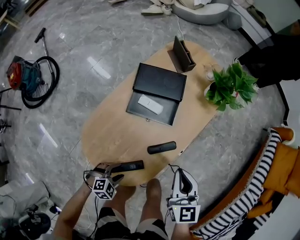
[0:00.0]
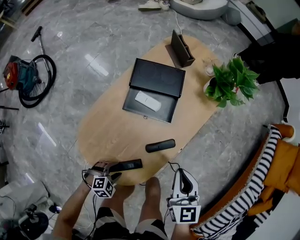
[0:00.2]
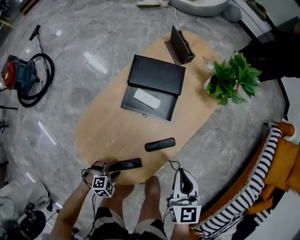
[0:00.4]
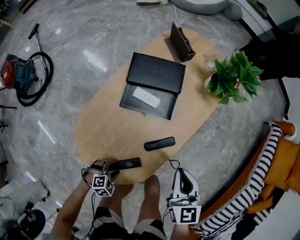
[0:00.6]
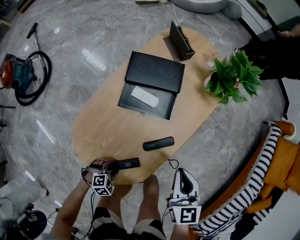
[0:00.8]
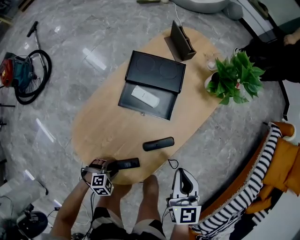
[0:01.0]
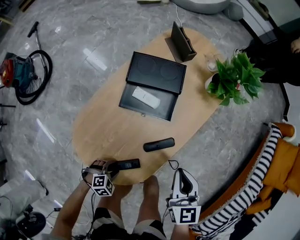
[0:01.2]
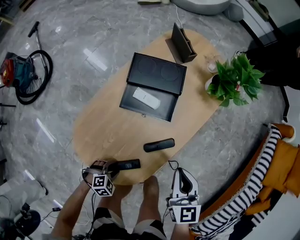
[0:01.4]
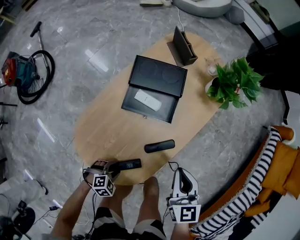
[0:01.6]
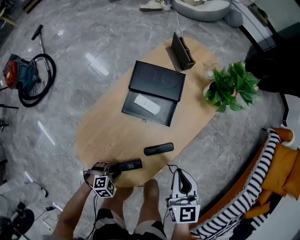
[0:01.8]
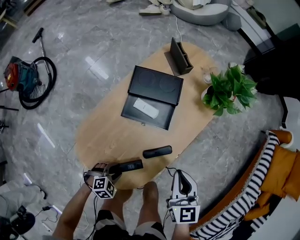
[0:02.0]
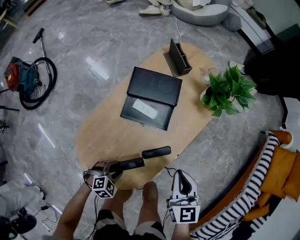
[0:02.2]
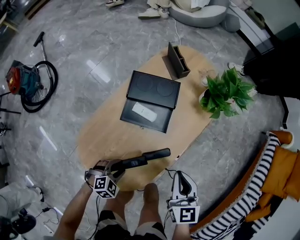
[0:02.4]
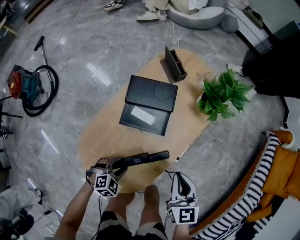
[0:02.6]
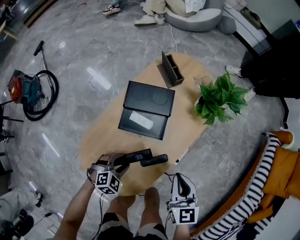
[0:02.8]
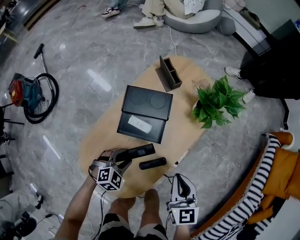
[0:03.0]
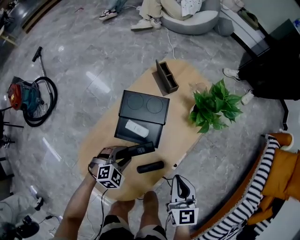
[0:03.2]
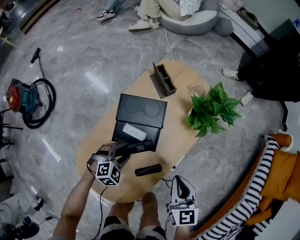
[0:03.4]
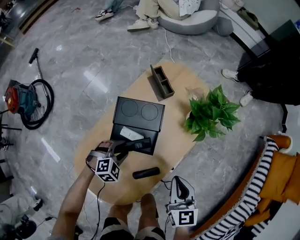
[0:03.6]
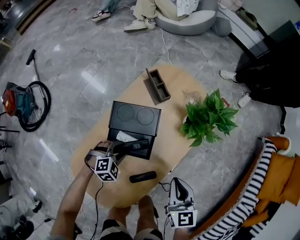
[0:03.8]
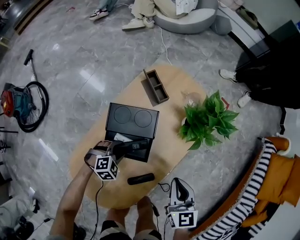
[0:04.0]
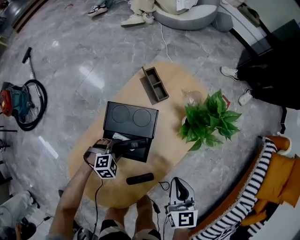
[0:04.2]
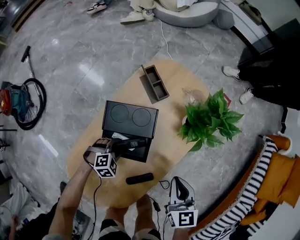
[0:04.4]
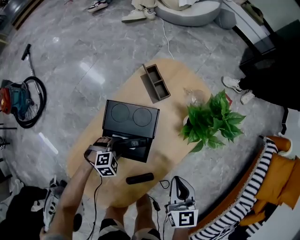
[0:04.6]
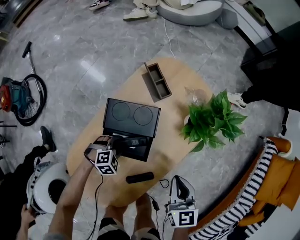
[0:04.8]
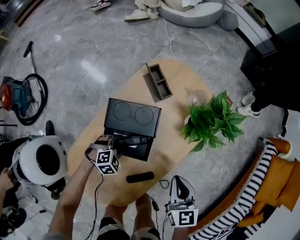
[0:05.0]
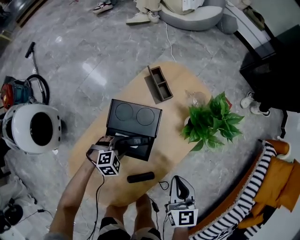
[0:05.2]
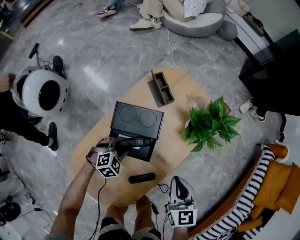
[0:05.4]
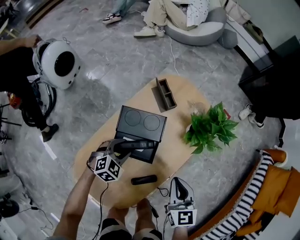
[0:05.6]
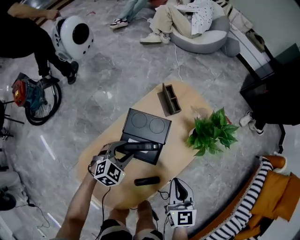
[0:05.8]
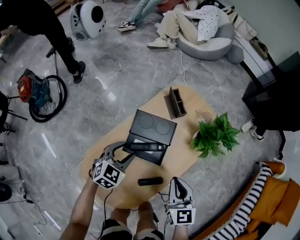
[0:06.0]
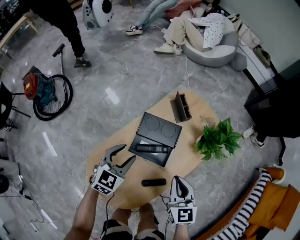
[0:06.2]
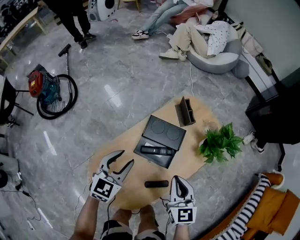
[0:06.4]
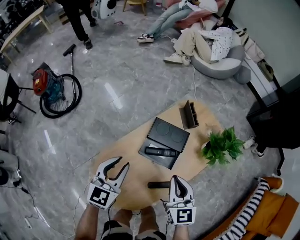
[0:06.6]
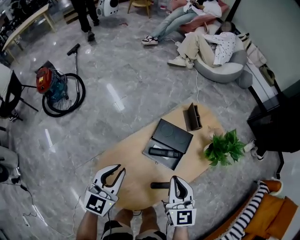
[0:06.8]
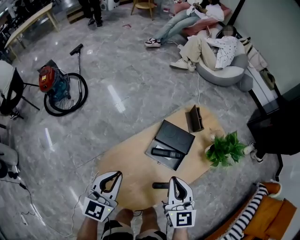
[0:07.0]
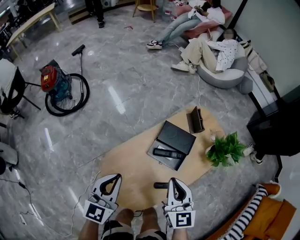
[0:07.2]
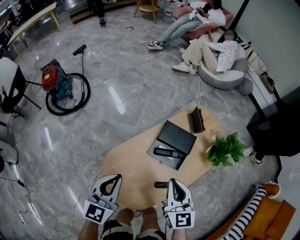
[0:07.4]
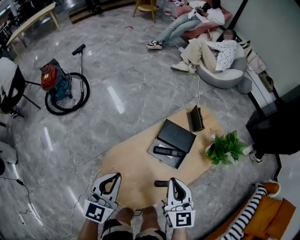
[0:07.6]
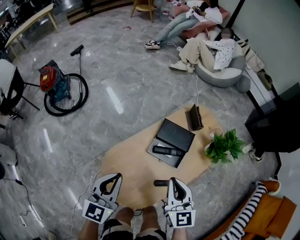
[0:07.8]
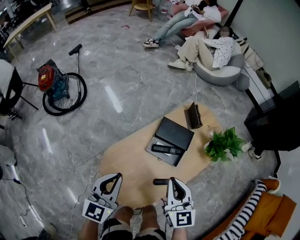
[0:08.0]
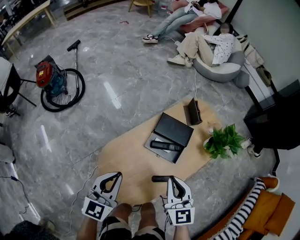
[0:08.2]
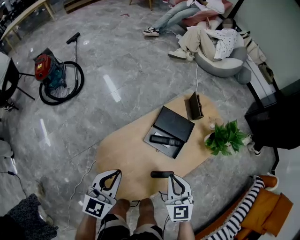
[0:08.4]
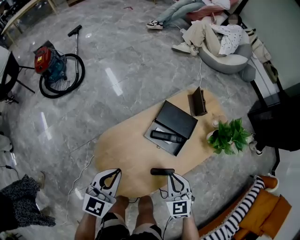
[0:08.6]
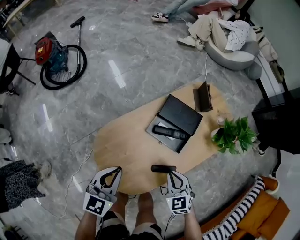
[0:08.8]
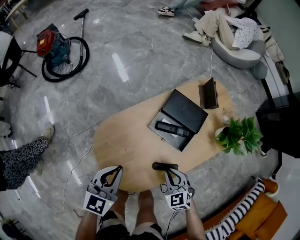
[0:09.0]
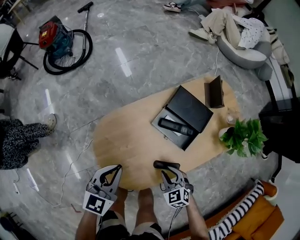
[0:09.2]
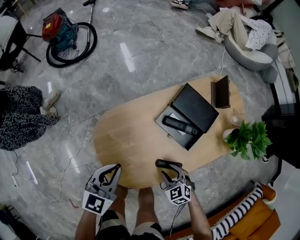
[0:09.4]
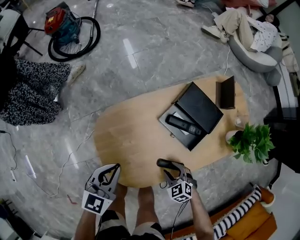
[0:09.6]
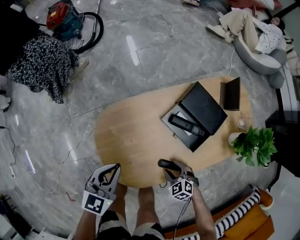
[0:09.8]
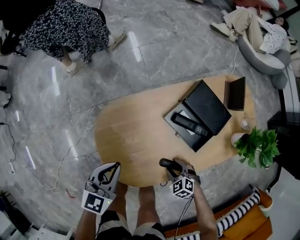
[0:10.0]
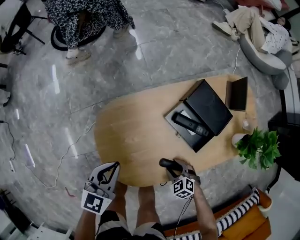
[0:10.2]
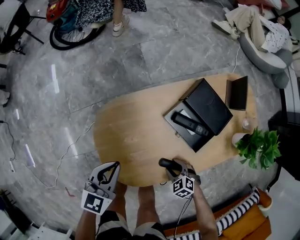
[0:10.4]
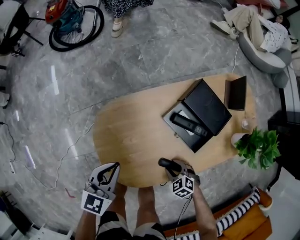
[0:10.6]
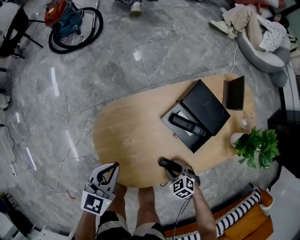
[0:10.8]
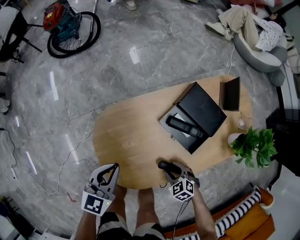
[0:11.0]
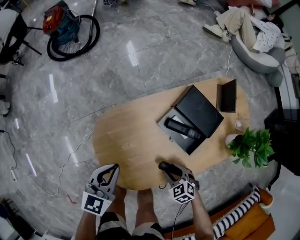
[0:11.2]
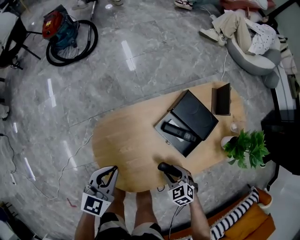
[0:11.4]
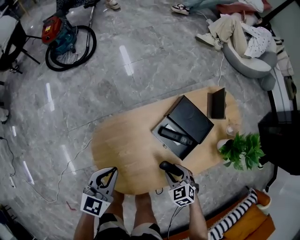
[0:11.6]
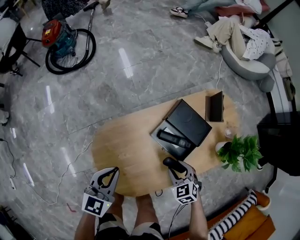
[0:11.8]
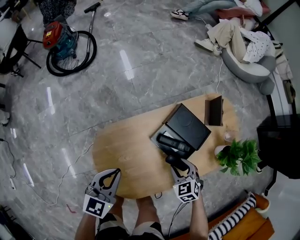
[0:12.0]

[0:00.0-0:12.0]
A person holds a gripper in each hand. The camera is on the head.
0:00.0 to 0:01.6: The grippers move only a little.
0:01.6 to 0:03.0: The left gripper is displaced forward and upward by roughly 25 cm. The right gripper moves forward, about 5 cm.
0:03.0 to 0:04.4: The left gripper is displaced forward and downward by roughly 15 cm, while the right gripper goes roughly 10 cm forward.
0:04.4 to 0:06.0: The left gripper goes approximately 20 cm upward, and changes its angle by about 40 degrees; the right gripper heads to the left and upward, covering about 10 cm.
0:06.0 to 0:07.6: The left gripper moves upward, backward and to the left, roughly 30 cm, rotates roughly 40 degrees, and closes up, while the right gripper goes roughly 20 cm to the left and upward.
0:07.6 to 0:09.0: The right gripper heads downward, covering about 25 cm, and swivels some 40 degrees. The left gripper moves downward, some 15 cm.
0:09.0 to 0:10.4: The left gripper moves downward, approximately 10 cm, while the right gripper moves downward, some 15 cm, changes its angle by roughly 30 degrees, and opens.
0:10.4 to 0:12.0: The left gripper heads upward and forward, covering roughly 10 cm. Meanwhile the right gripper travels upward, forward and to the right by about 20 cm, and swivels roughly 20 degrees.

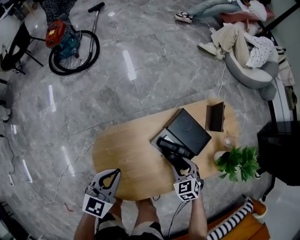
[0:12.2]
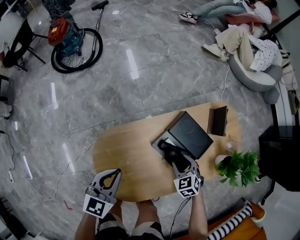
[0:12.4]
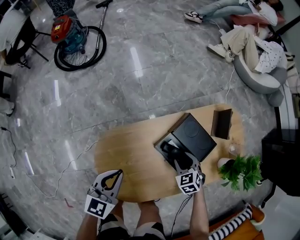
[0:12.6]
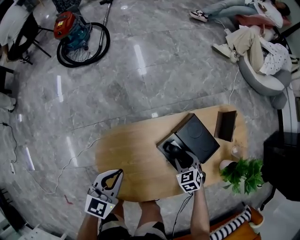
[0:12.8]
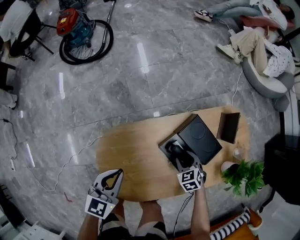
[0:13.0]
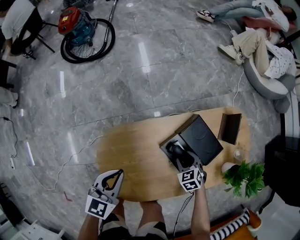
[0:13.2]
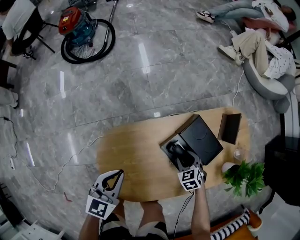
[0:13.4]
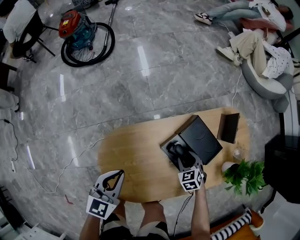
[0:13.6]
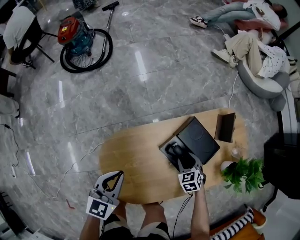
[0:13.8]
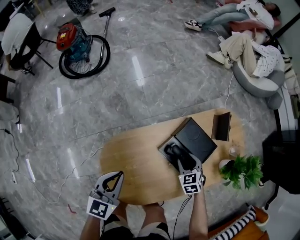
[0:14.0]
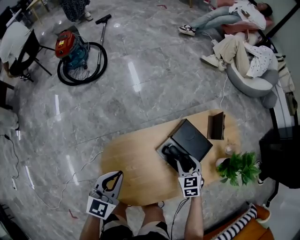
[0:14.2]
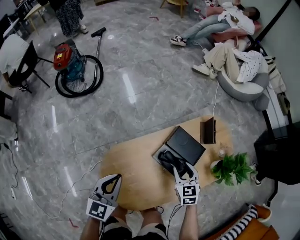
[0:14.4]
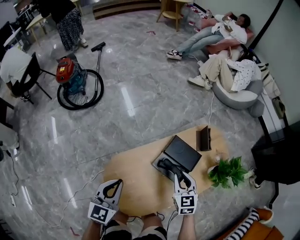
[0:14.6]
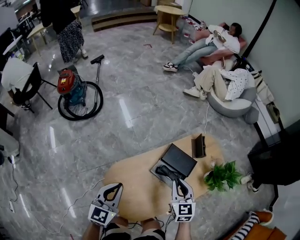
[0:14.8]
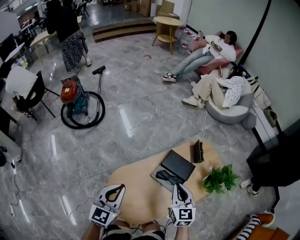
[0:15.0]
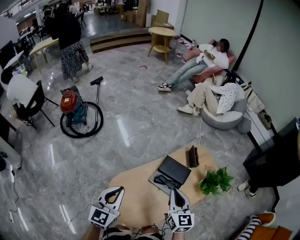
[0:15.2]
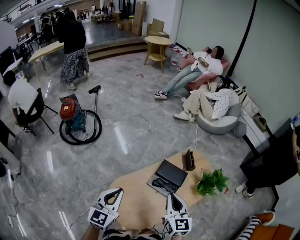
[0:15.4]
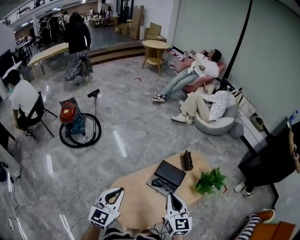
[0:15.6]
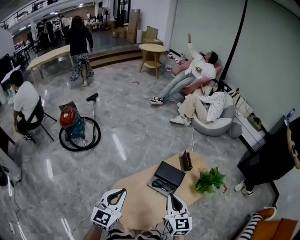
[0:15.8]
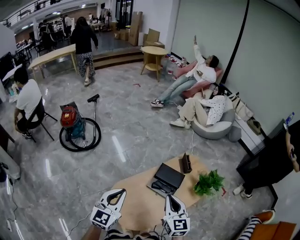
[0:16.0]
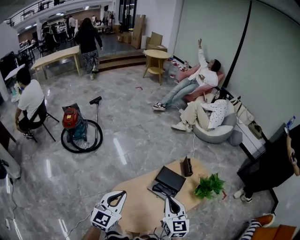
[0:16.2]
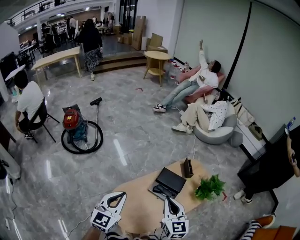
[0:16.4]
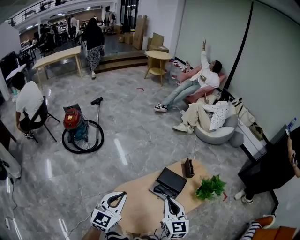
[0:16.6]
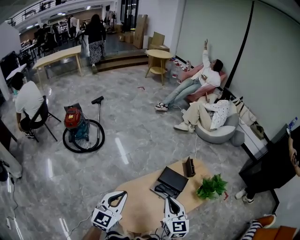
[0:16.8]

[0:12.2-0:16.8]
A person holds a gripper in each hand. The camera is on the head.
0:12.2 to 0:13.8: The right gripper goes approximately 10 cm downward and forward.
0:13.8 to 0:15.2: The left gripper shifts about 25 cm upward, and turns by some 20 degrees, while the right gripper is displaced upward by some 40 cm, angles its fingers upward, by some 40 degrees, and closes its fingers.
0:15.2 to 0:16.8: The right gripper heads upward and backward, covering some 10 cm, while the left gripper shifts some 10 cm upward.

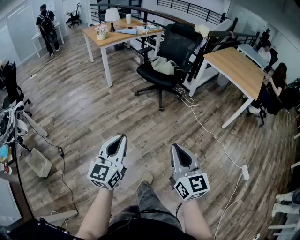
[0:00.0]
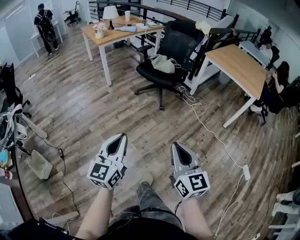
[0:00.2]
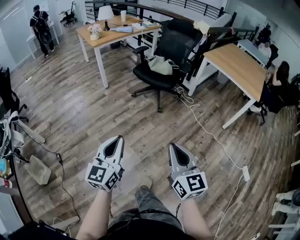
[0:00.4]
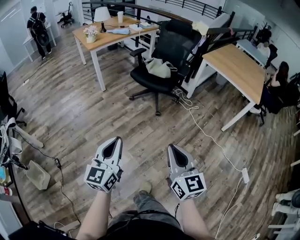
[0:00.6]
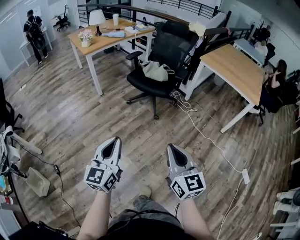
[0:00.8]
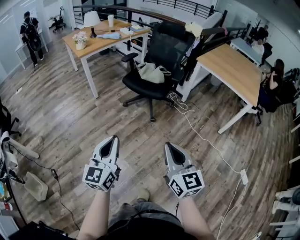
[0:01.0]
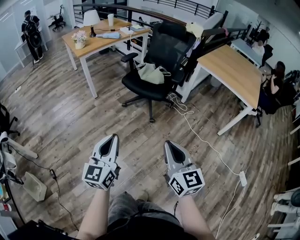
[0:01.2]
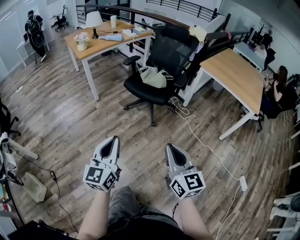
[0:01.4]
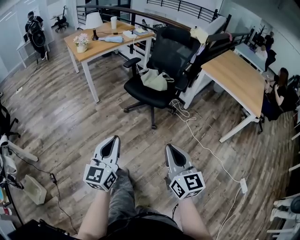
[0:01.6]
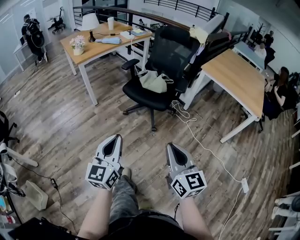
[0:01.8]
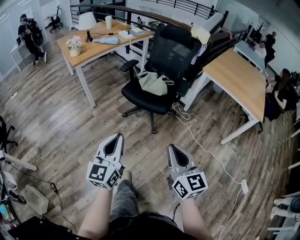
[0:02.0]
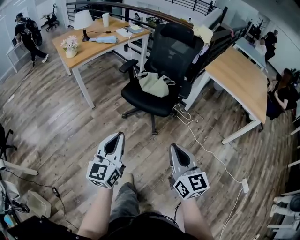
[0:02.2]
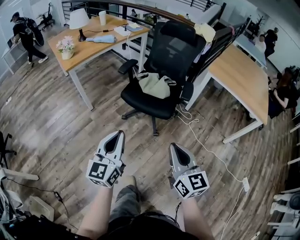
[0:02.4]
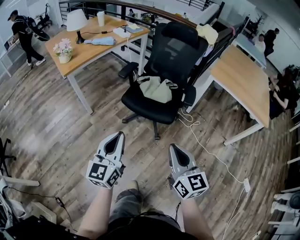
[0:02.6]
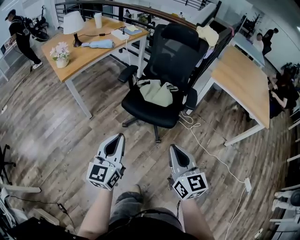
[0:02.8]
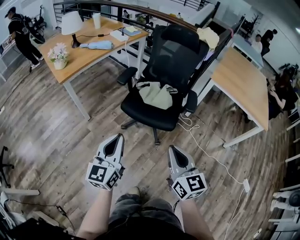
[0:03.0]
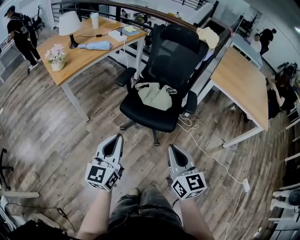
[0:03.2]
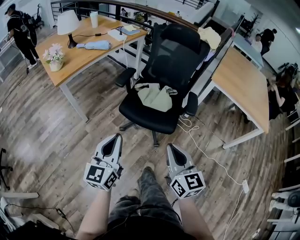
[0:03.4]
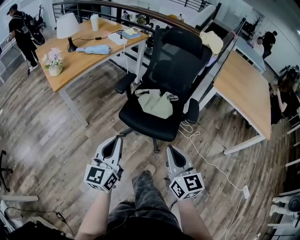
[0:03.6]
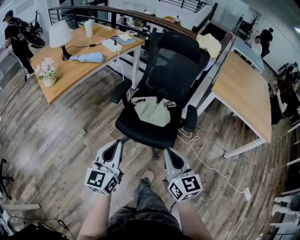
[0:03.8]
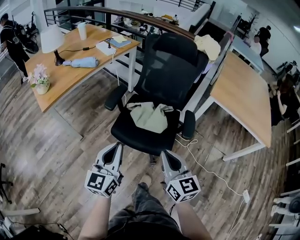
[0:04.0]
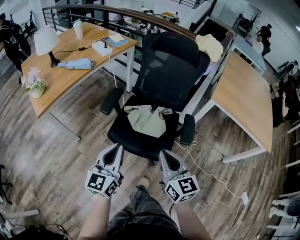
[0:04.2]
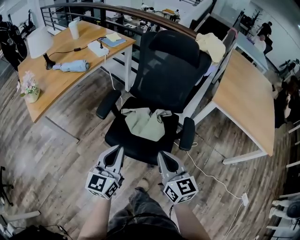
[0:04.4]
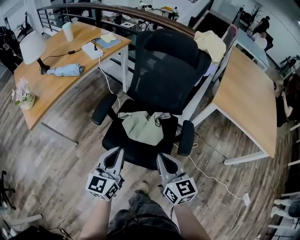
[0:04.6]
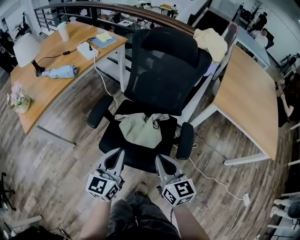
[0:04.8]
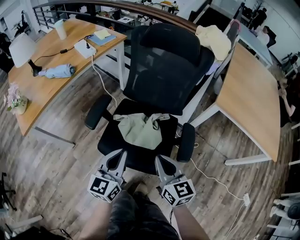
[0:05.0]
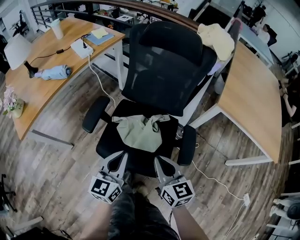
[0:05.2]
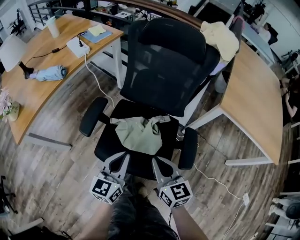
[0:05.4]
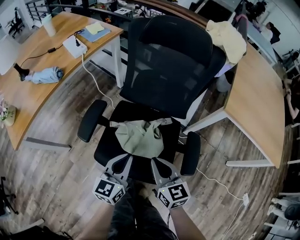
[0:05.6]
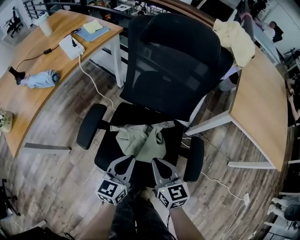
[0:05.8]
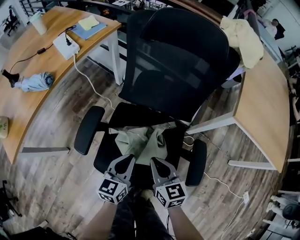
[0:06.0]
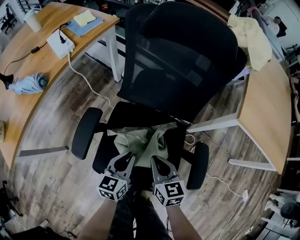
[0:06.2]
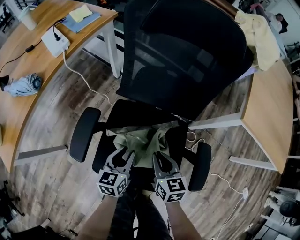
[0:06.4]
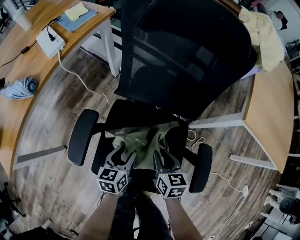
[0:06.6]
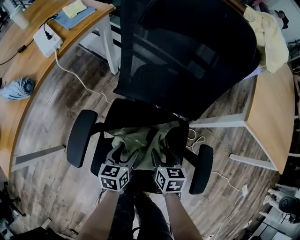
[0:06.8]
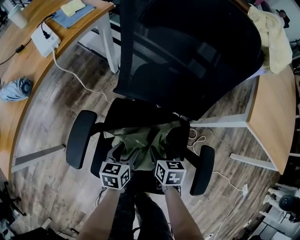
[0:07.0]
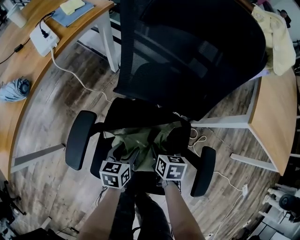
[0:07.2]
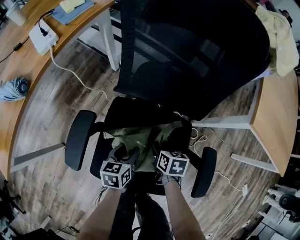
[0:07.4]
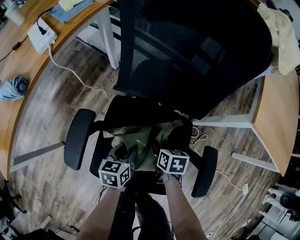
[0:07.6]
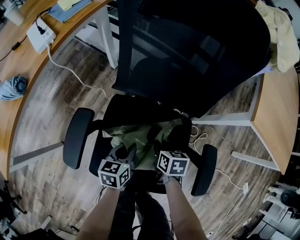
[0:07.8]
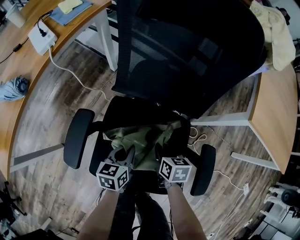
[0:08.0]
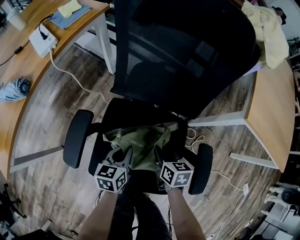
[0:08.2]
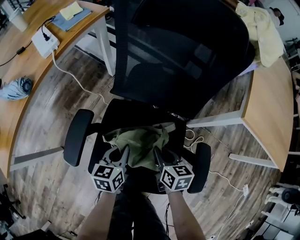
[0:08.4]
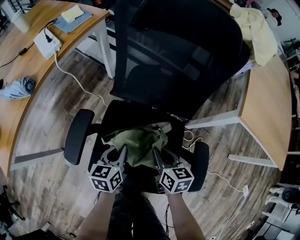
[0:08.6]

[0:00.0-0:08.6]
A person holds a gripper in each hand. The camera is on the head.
0:00.0 to 0:01.4: Both grippers travel together forward, about 25 cm.
0:01.4 to 0:02.8: The grippers both shift forward by about 30 cm.
0:02.8 to 0:04.4: The two grippers go approximately 30 cm forward.
0:04.4 to 0:05.8: The grippers both shift forward and downward by approximately 25 cm.
0:05.8 to 0:07.2: The grippers both shift downward and forward by about 20 cm. The right gripper tips its fingers downward by some 30 degrees, and opens its fingers, while the left gripper swivels roughly 30 degrees, and opens up.
0:07.2 to 0:08.6: Both grippers travel together upward, approximately 5 cm. The left gripper closes up. Meanwhile the right gripper changes its angle by about 20 degrees, and closes its fingers.
